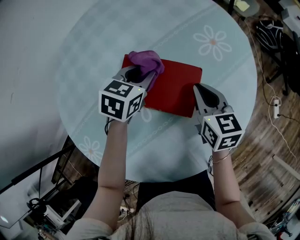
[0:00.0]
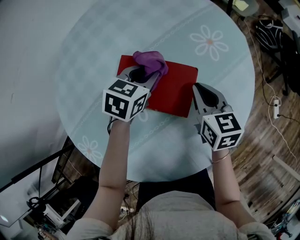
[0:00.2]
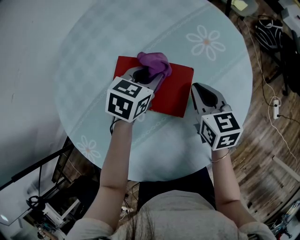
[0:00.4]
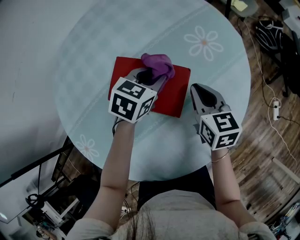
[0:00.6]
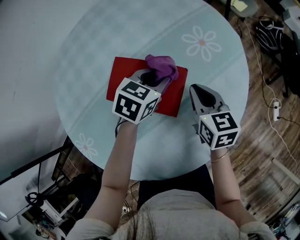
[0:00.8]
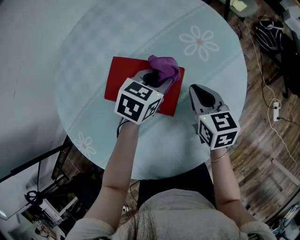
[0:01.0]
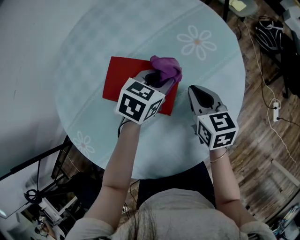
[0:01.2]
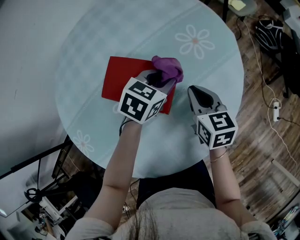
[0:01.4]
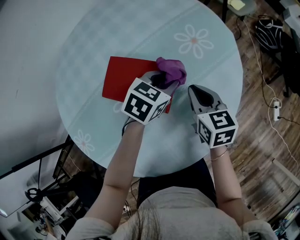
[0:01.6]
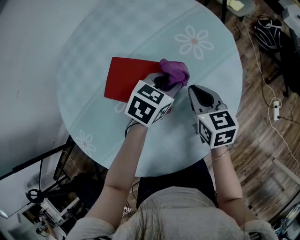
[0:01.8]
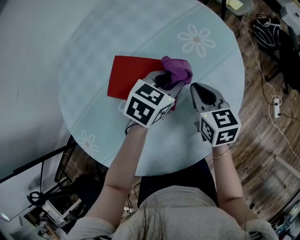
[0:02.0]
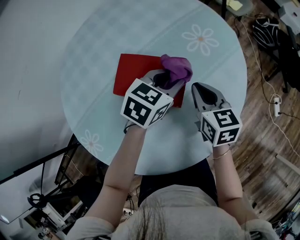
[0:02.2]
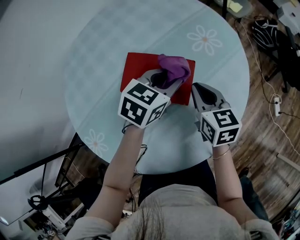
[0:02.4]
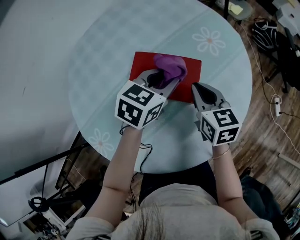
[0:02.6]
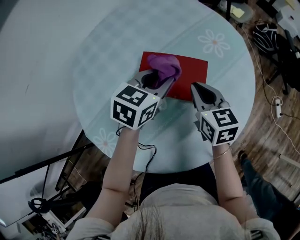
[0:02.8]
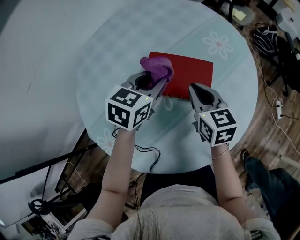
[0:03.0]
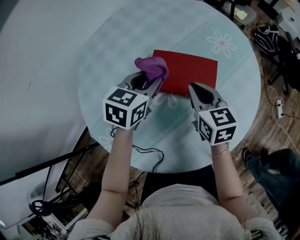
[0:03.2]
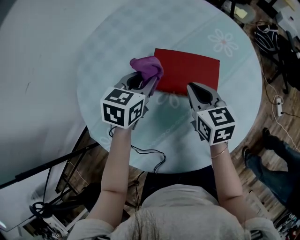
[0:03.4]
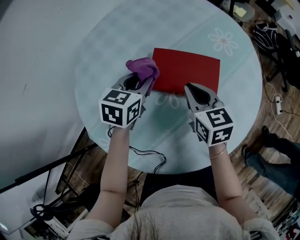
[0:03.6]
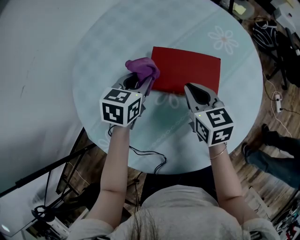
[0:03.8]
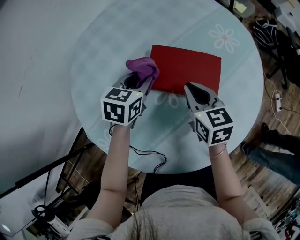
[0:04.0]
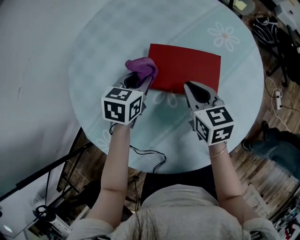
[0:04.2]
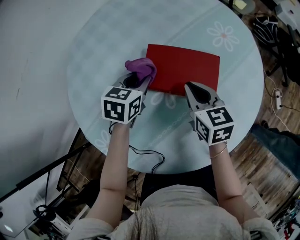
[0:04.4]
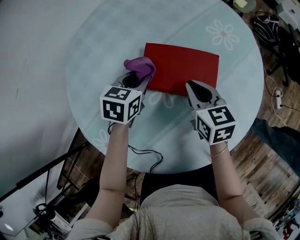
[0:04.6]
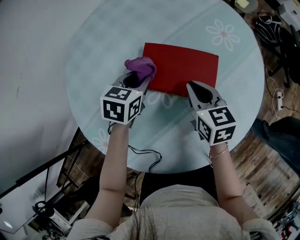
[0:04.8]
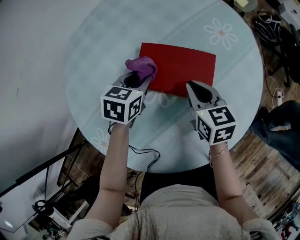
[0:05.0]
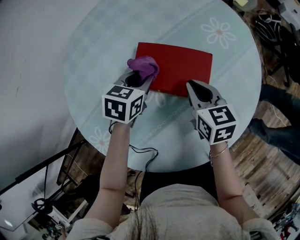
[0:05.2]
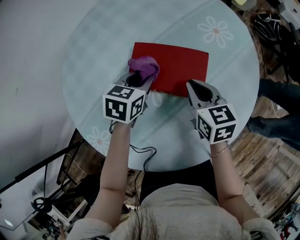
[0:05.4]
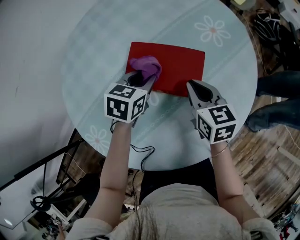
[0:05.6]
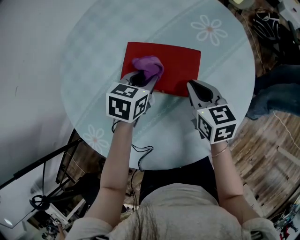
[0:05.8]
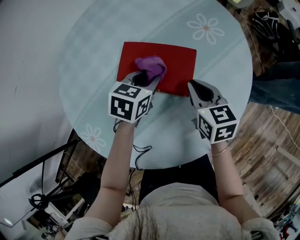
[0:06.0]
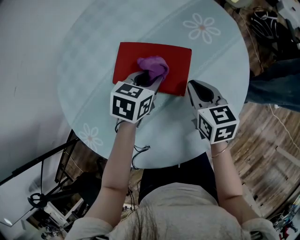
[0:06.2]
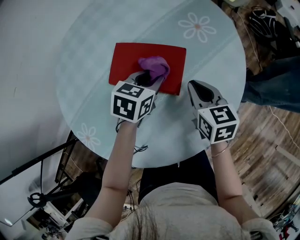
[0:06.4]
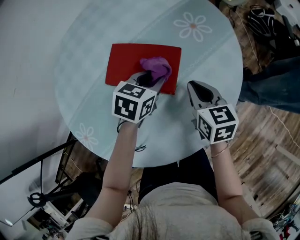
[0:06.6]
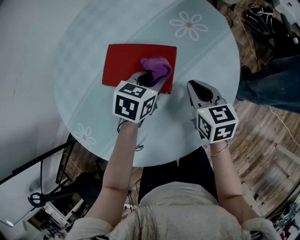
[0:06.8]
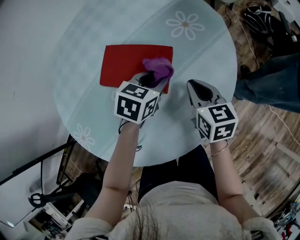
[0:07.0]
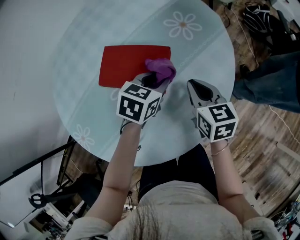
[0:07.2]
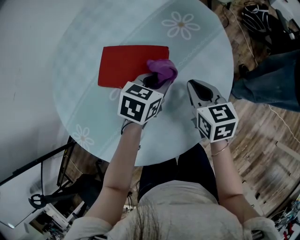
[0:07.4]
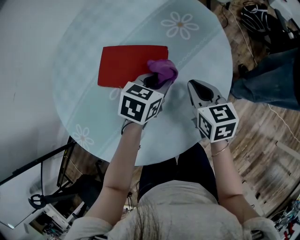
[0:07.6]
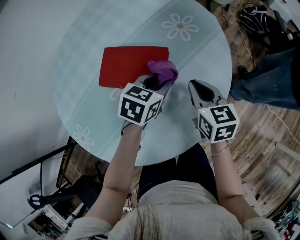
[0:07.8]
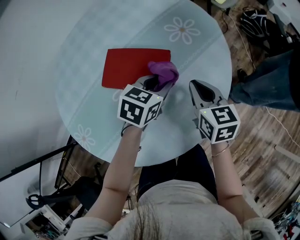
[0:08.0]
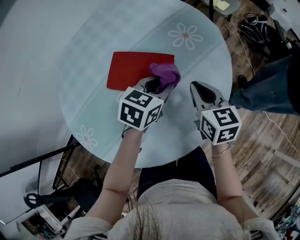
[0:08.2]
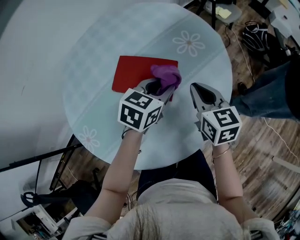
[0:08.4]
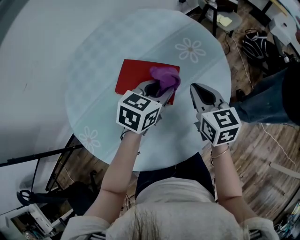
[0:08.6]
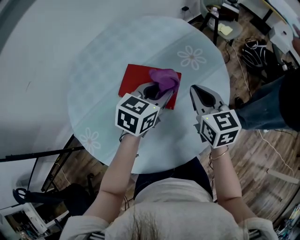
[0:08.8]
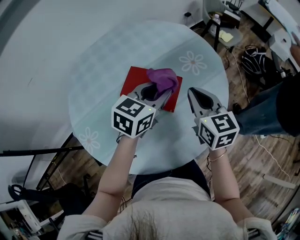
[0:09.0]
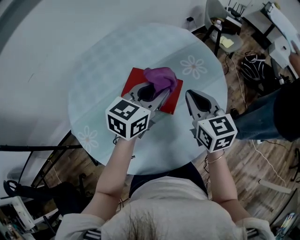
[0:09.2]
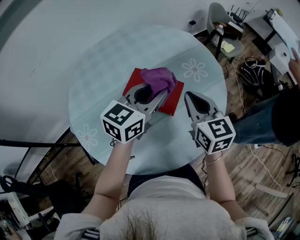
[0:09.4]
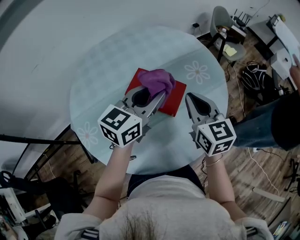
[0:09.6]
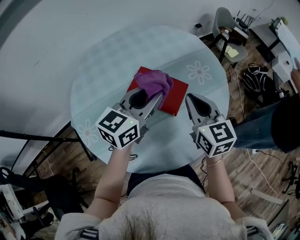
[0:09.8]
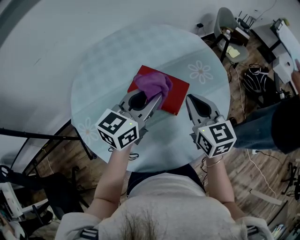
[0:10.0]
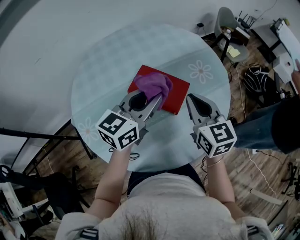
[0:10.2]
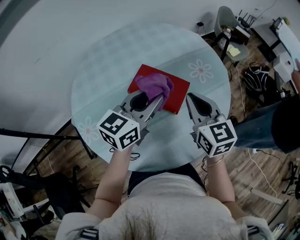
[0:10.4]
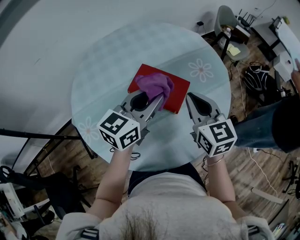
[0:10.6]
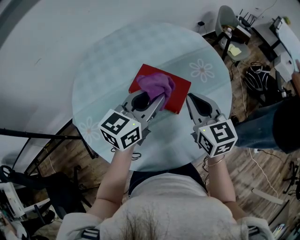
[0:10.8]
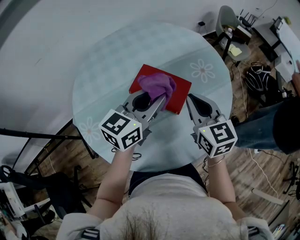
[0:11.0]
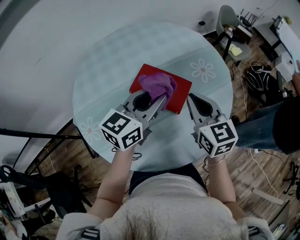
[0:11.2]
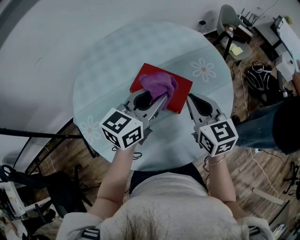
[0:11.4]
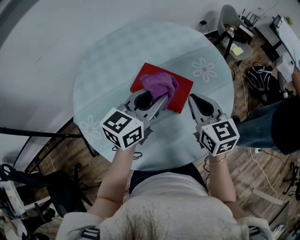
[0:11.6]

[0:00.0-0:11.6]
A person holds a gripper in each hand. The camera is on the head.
0:00.0 to 0:01.4: The left gripper goes about 15 cm to the right. The right gripper shifts some 5 cm to the right.
0:01.4 to 0:02.8: Both grippers move to the left, upward and backward, about 15 cm.
0:02.8 to 0:04.4: The left gripper goes some 15 cm to the left and downward; the right gripper shifts some 5 cm to the left.
0:04.4 to 0:05.8: The grippers both shift to the right by some 10 cm.
0:05.8 to 0:07.2: Both grippers move to the right, approximately 10 cm.
0:07.2 to 0:08.8: Both grippers travel together upward, about 15 cm.
0:08.8 to 0:10.2: The right gripper shifts some 5 cm to the left. Meanwhile the left gripper moves to the left and upward, approximately 10 cm, and rotates roughly 20 degrees.
0:10.2 to 0:11.6: The two grippers keep their place.

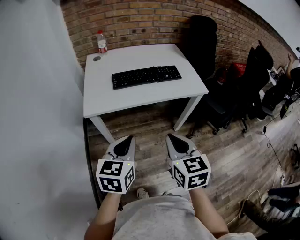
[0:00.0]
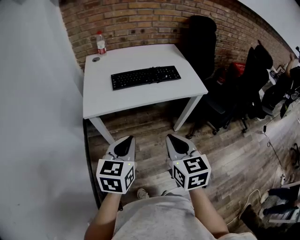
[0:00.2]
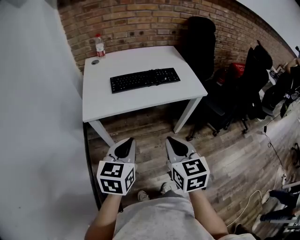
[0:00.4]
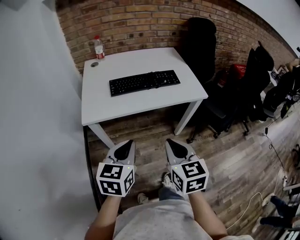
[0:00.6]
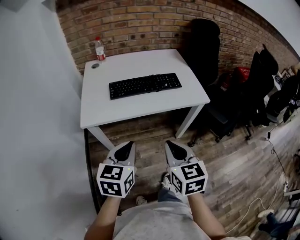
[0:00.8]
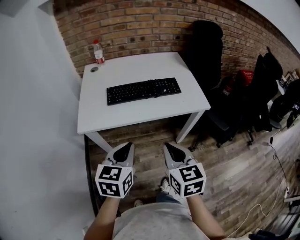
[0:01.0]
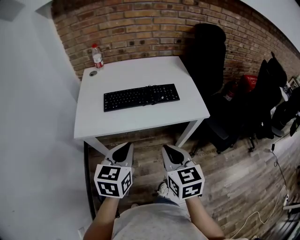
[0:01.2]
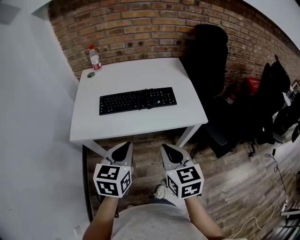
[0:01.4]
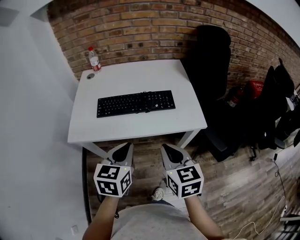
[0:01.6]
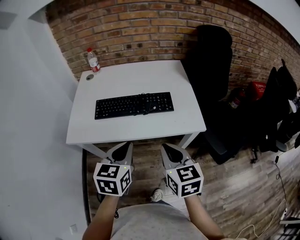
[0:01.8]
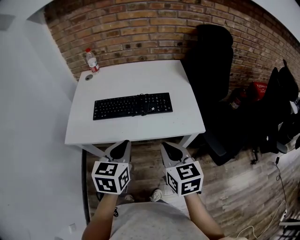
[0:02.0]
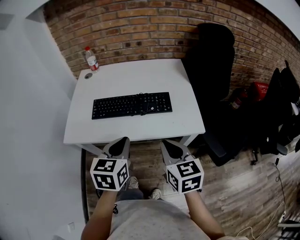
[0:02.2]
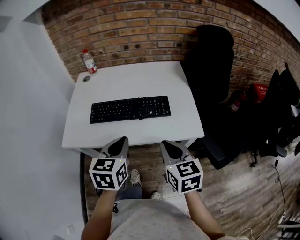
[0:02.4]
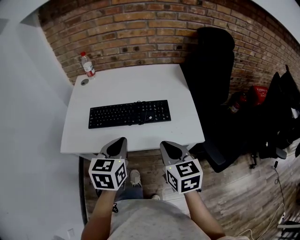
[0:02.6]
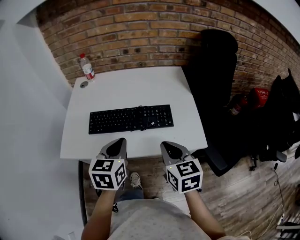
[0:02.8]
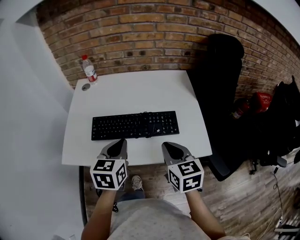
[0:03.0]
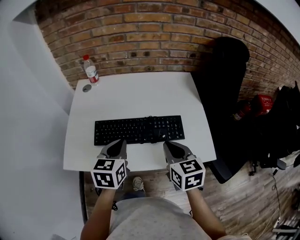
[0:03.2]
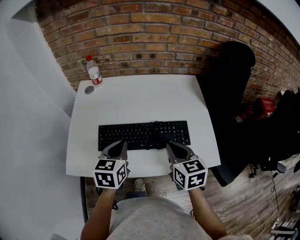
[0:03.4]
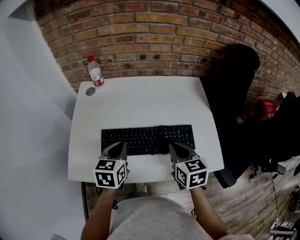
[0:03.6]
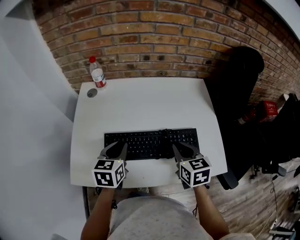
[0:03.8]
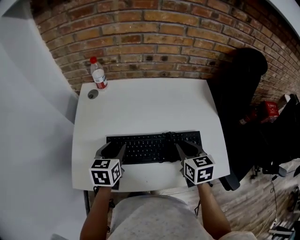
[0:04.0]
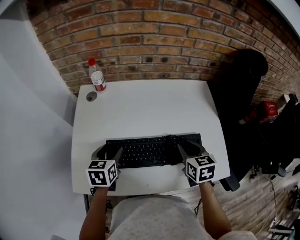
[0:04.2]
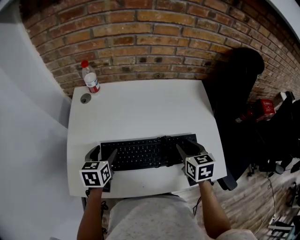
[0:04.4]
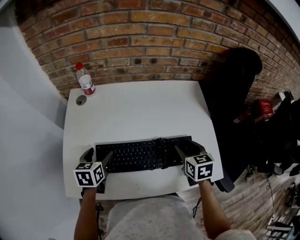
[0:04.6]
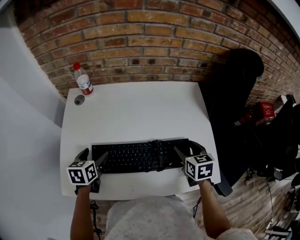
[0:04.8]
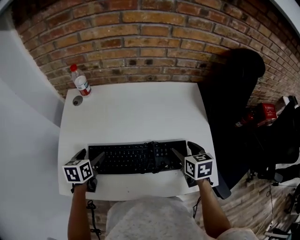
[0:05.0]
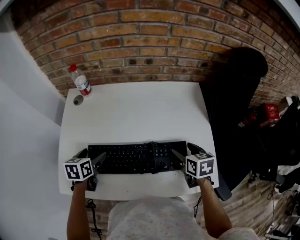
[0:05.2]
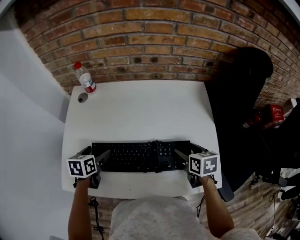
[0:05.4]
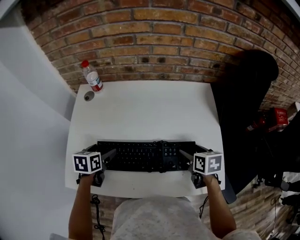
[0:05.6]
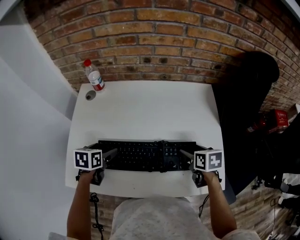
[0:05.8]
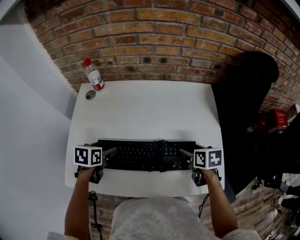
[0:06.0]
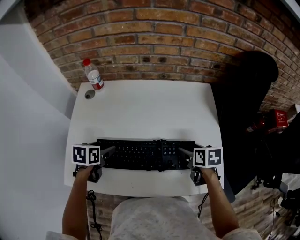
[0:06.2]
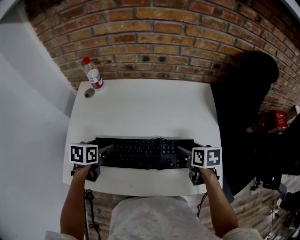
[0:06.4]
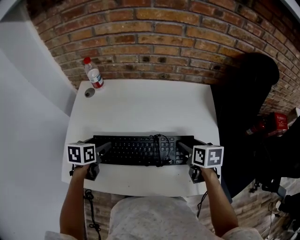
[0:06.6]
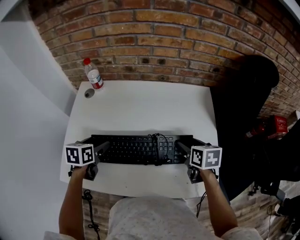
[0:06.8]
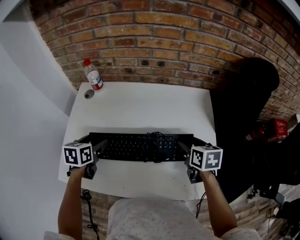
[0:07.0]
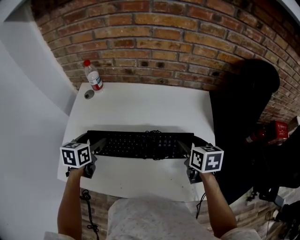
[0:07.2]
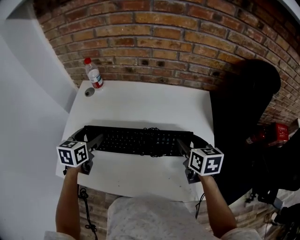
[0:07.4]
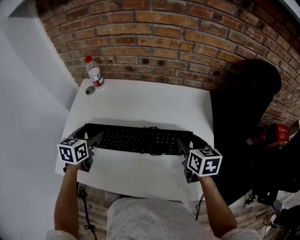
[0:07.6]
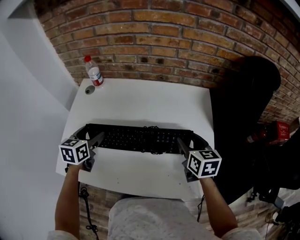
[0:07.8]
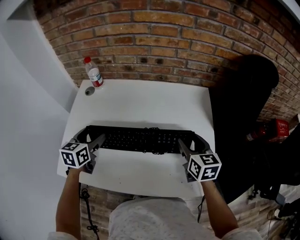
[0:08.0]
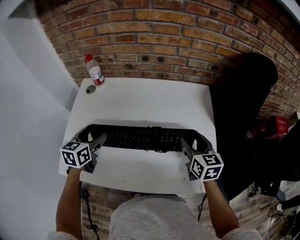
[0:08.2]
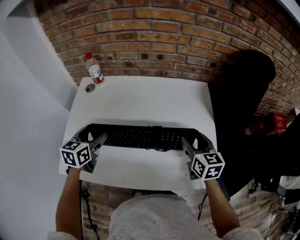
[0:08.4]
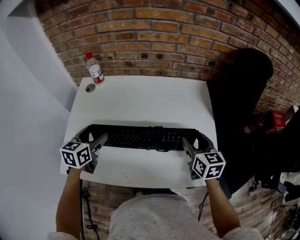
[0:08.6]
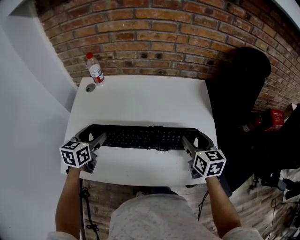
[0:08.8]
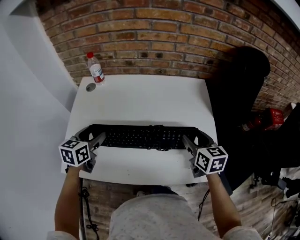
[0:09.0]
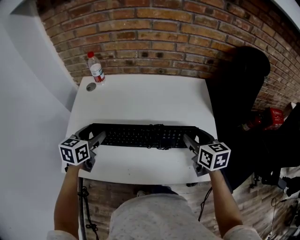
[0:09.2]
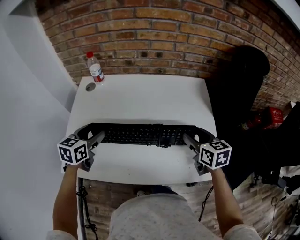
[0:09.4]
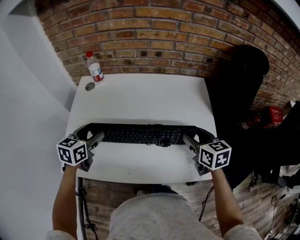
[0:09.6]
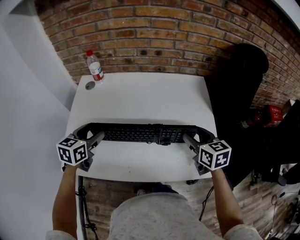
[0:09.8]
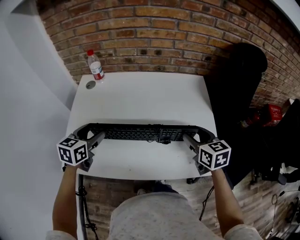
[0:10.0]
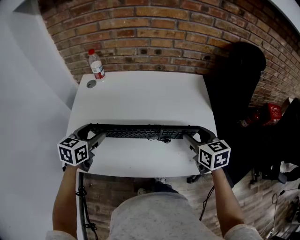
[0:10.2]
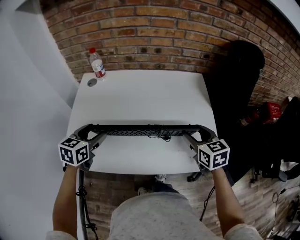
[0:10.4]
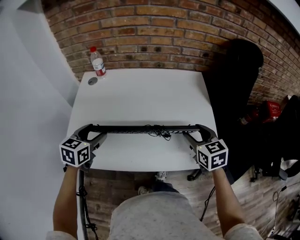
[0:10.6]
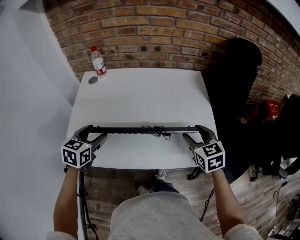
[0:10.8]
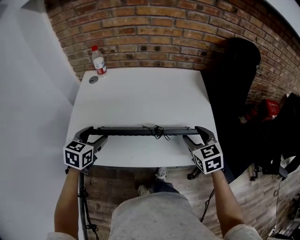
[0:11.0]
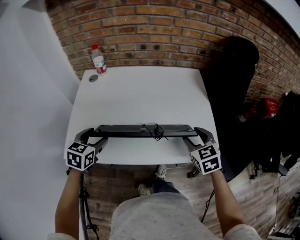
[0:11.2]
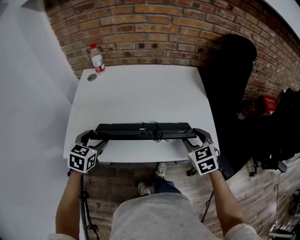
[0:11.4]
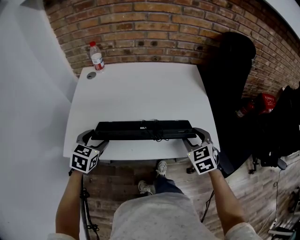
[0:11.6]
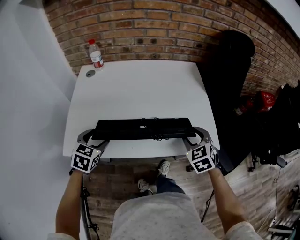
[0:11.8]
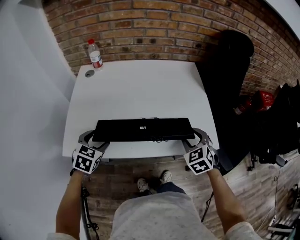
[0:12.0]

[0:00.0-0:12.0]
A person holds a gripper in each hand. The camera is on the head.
0:00.0 to 0:01.6: The grippers both shift forward and to the right by approximately 25 cm.
0:01.6 to 0:03.0: Both grippers travel together forward, about 20 cm.
0:03.0 to 0:04.4: The left gripper moves to the left, forward and downward, about 25 cm, and opens up; the right gripper moves forward, about 20 cm, and opens.
0:04.4 to 0:06.0: The right gripper moves to the right and downward, some 10 cm, turns by roughly 20 degrees, and opens its fingers.
0:06.0 to 0:07.6: Both grippers travel together upward, about 10 cm. The left gripper swivels some 20 degrees; the right gripper rotates some 20 degrees.
0:07.6 to 0:09.0: The right gripper goes about 5 cm backward.
0:09.0 to 0:10.4: The grippers stay close to where they were, moving slightly.
0:10.4 to 0:12.0: The grippers both shift backward and downward by some 10 cm. The right gripper rotates approximately 40 degrees; the left gripper rotates roughly 20 degrees.
